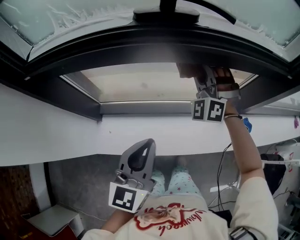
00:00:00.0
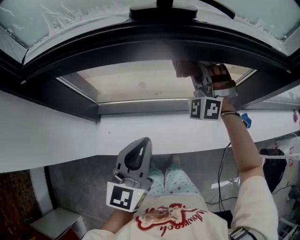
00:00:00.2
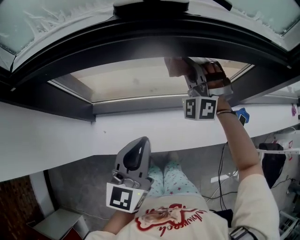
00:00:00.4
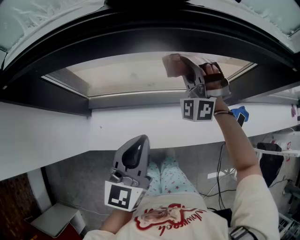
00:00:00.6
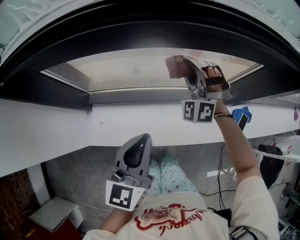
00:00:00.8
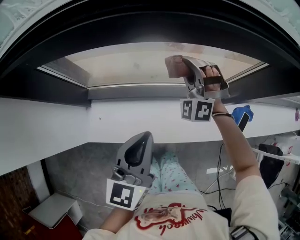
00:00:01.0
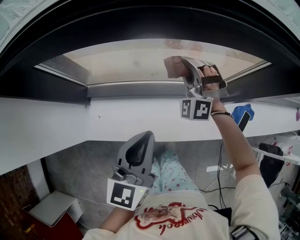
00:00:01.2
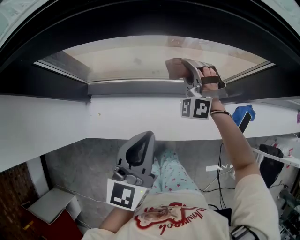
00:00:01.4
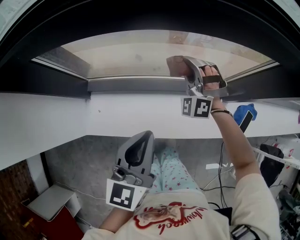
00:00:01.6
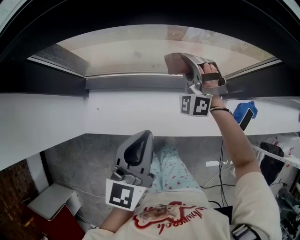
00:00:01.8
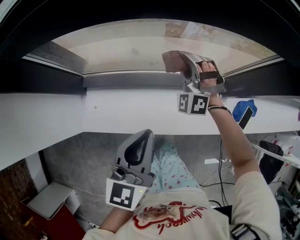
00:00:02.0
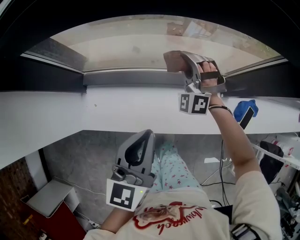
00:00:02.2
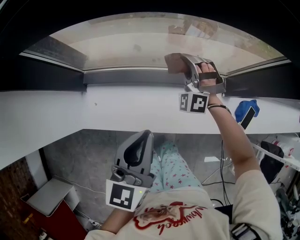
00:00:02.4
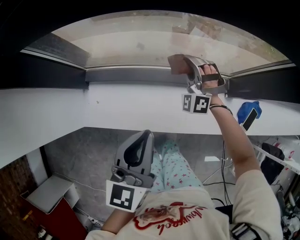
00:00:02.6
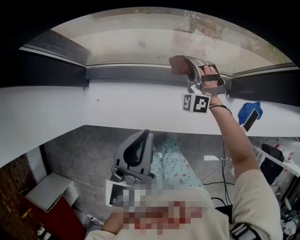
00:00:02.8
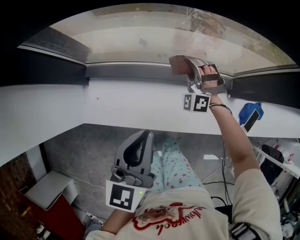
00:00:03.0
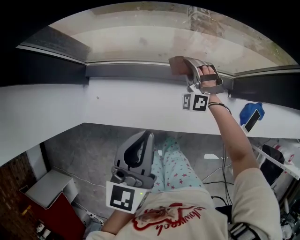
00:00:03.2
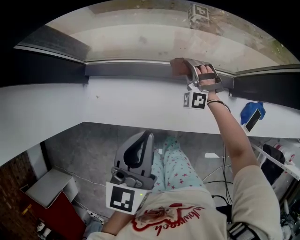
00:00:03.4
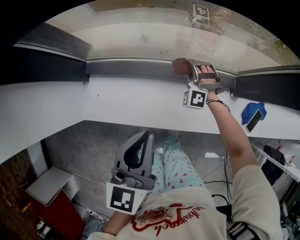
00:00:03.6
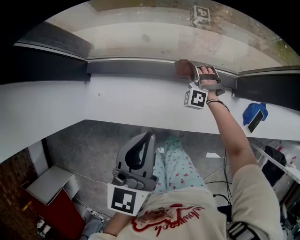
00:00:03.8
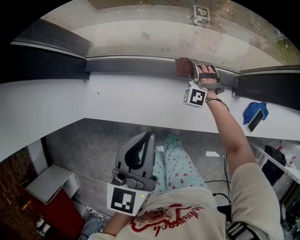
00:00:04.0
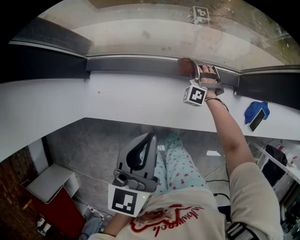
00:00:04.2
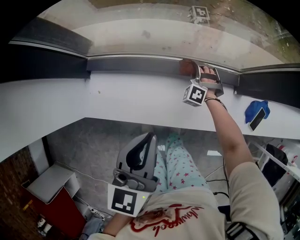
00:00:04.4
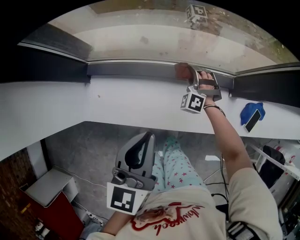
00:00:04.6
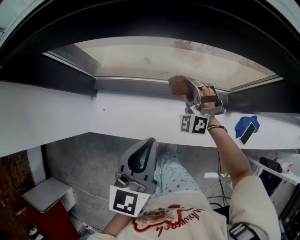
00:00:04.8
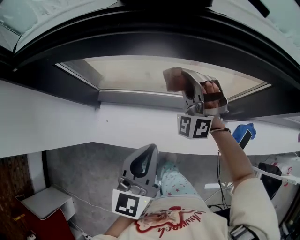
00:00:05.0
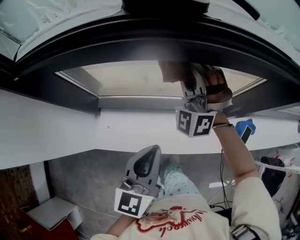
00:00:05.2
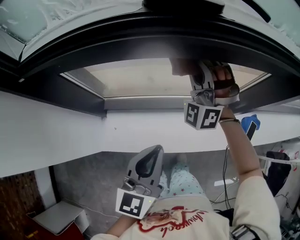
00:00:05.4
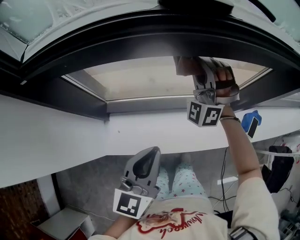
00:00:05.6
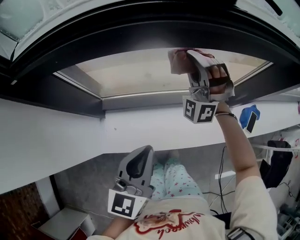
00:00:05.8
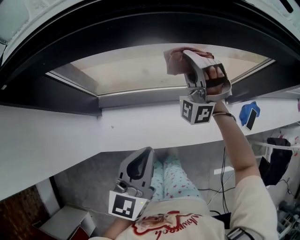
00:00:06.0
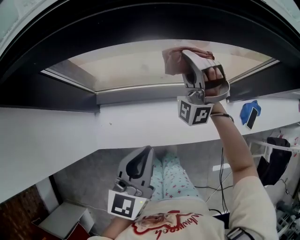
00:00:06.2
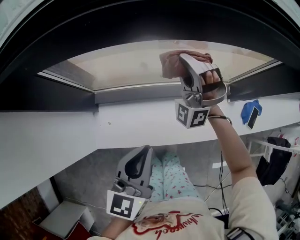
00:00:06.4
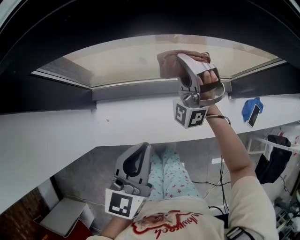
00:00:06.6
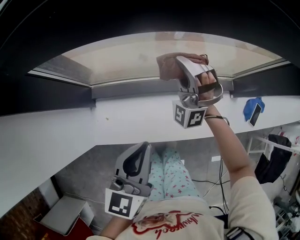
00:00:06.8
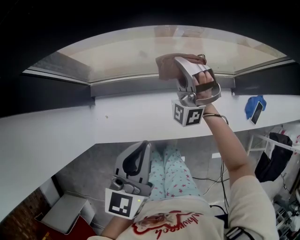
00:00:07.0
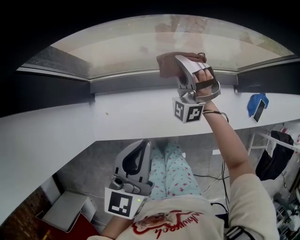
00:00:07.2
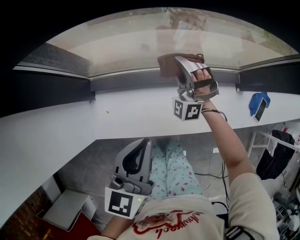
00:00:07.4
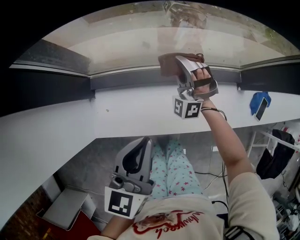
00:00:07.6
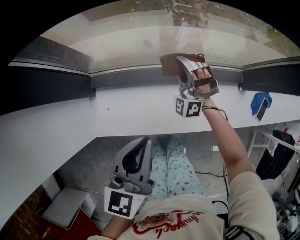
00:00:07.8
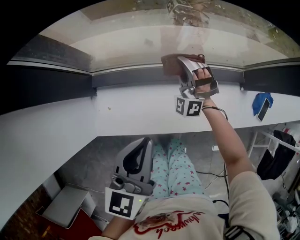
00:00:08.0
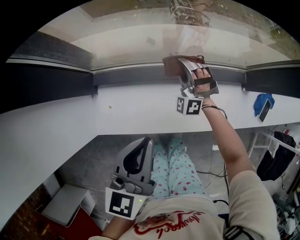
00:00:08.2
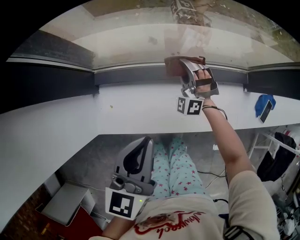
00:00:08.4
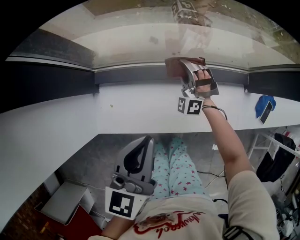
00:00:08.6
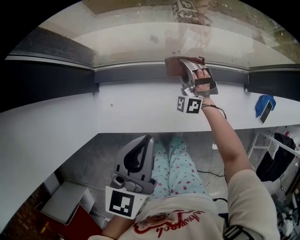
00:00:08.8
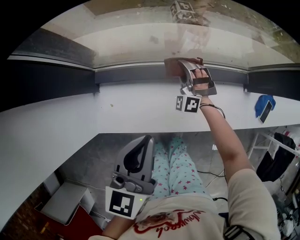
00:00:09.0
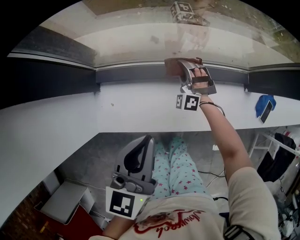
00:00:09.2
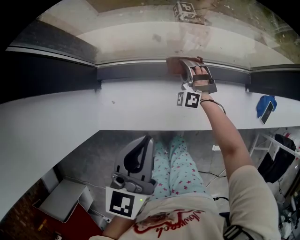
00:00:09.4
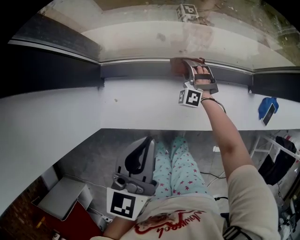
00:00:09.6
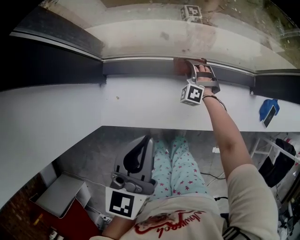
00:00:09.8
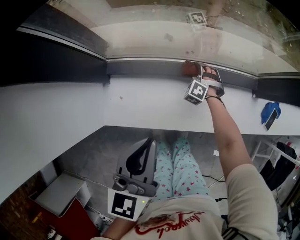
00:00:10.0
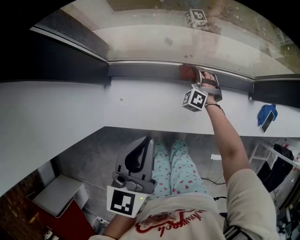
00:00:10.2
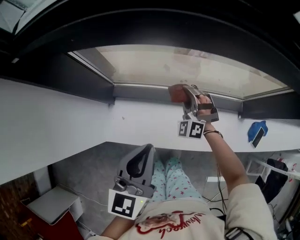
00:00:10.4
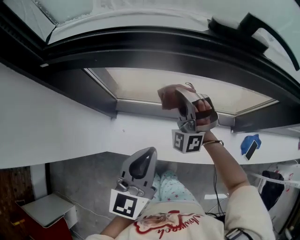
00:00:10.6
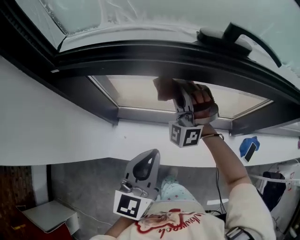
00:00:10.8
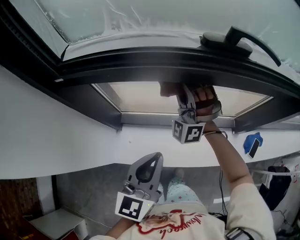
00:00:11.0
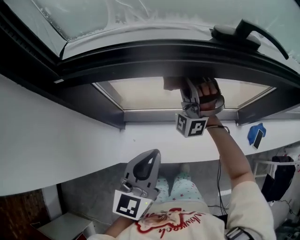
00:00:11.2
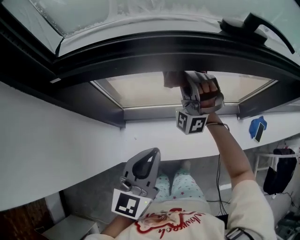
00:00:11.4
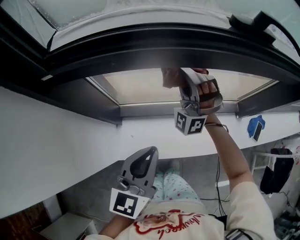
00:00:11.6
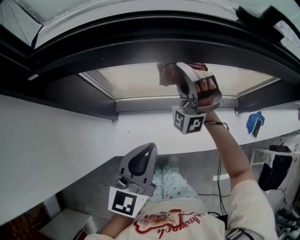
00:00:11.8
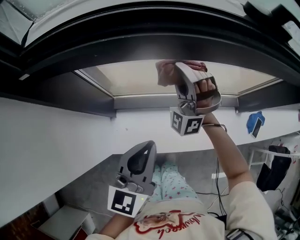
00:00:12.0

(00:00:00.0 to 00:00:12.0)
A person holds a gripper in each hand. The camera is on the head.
00:00:00.0 - 00:00:01.6: The left gripper goes roughly 10 cm downward. The right gripper shifts approximately 20 cm downward.
00:00:01.6 - 00:00:03.0: The right gripper heads downward, covering roughly 10 cm.
00:00:03.0 - 00:00:04.4: The right gripper moves downward, about 15 cm, and changes its angle by approximately 20 degrees.
00:00:04.4 - 00:00:06.0: The left gripper heads to the left and upward, covering roughly 10 cm, while the right gripper heads upward, covering some 40 cm, and angles its fingers upward, by some 40 degrees.
00:00:06.0 - 00:00:07.6: The right gripper shifts approximately 20 cm downward, while the left gripper moves downward, roughly 5 cm.
00:00:07.6 - 00:00:09.0: The right gripper moves downward, some 10 cm.
00:00:09.0 - 00:00:10.4: The left gripper moves upward, about 5 cm. Meanwhile the right gripper goes some 10 cm upward.
00:00:10.4 - 00:00:12.0: The right gripper is displaced upward by approximately 20 cm, and turns by about 30 degrees. Meanwhile the left gripper goes upward and returns, about 10 cm each way.

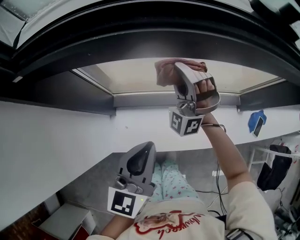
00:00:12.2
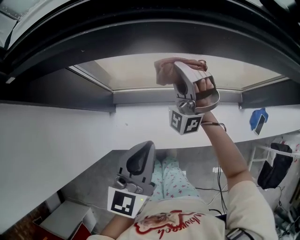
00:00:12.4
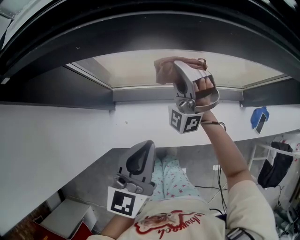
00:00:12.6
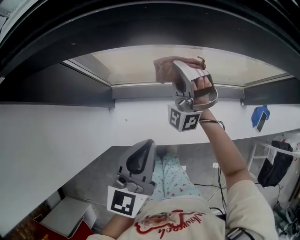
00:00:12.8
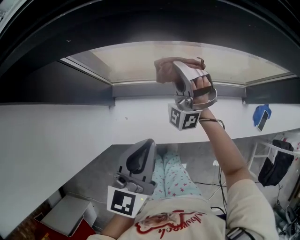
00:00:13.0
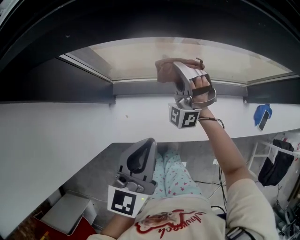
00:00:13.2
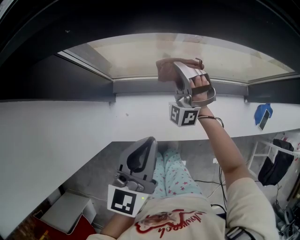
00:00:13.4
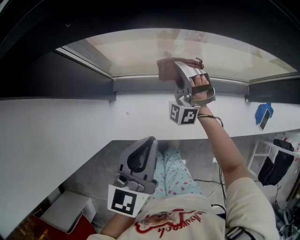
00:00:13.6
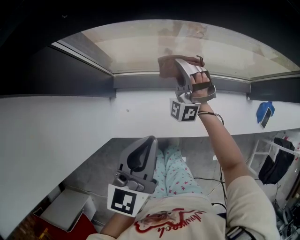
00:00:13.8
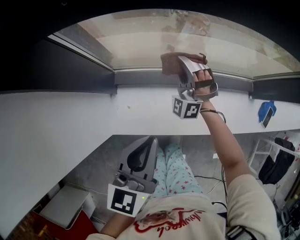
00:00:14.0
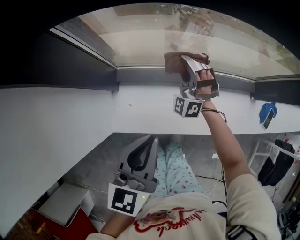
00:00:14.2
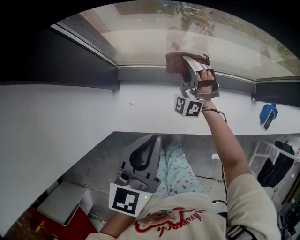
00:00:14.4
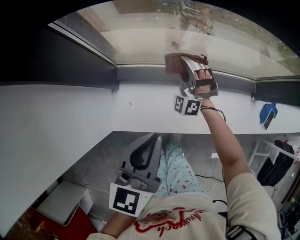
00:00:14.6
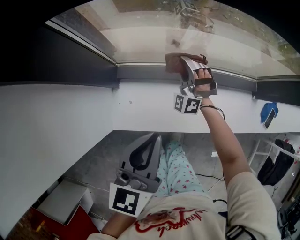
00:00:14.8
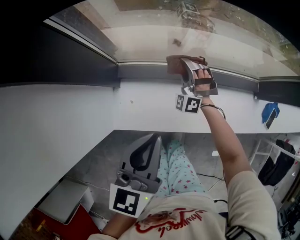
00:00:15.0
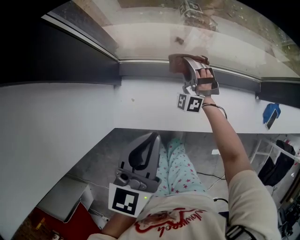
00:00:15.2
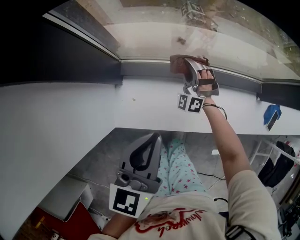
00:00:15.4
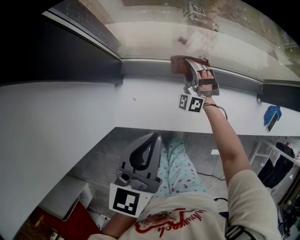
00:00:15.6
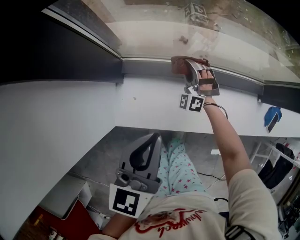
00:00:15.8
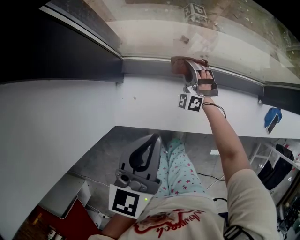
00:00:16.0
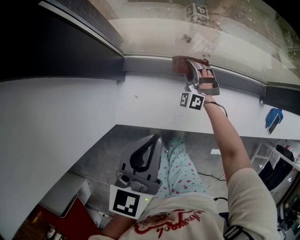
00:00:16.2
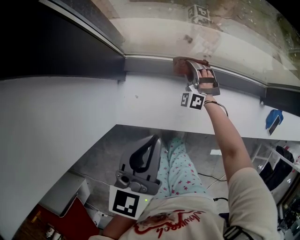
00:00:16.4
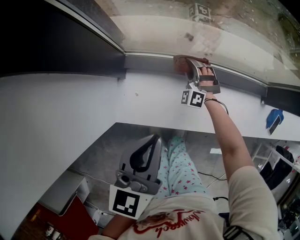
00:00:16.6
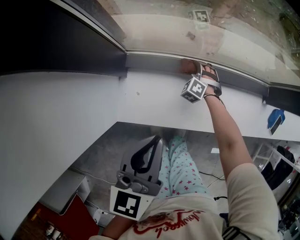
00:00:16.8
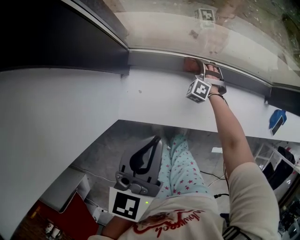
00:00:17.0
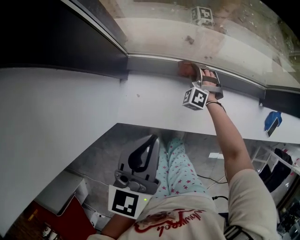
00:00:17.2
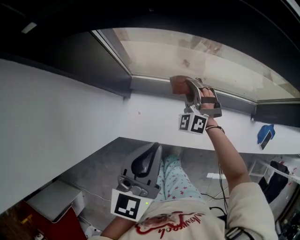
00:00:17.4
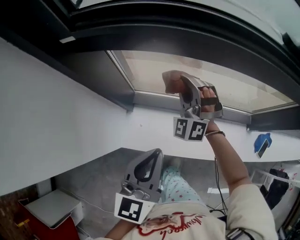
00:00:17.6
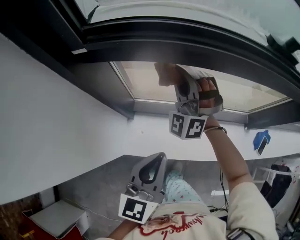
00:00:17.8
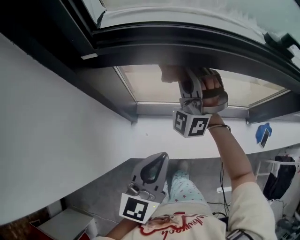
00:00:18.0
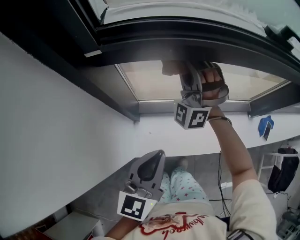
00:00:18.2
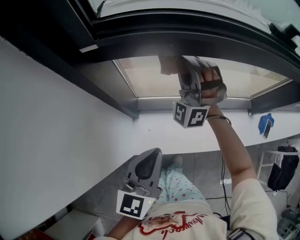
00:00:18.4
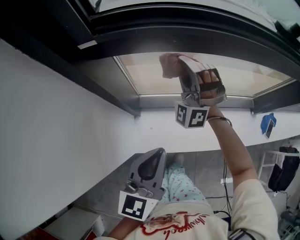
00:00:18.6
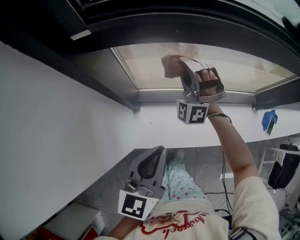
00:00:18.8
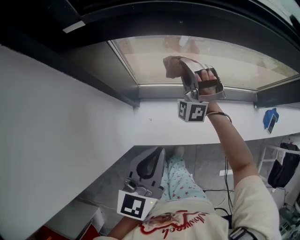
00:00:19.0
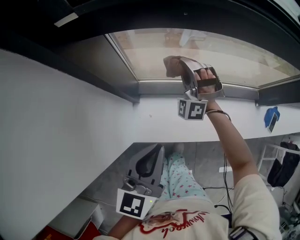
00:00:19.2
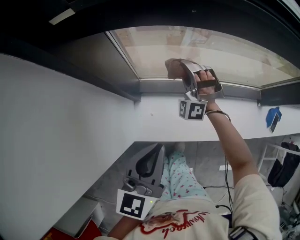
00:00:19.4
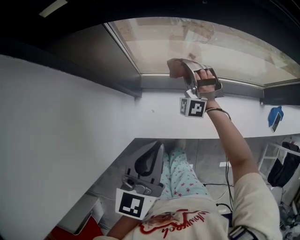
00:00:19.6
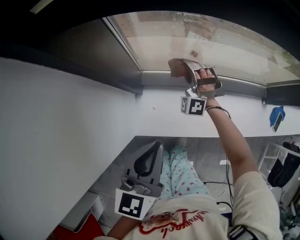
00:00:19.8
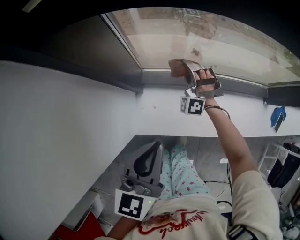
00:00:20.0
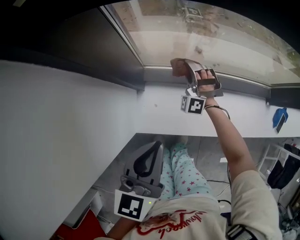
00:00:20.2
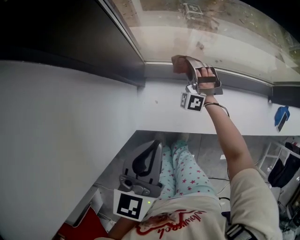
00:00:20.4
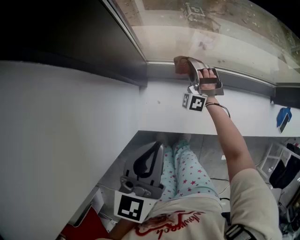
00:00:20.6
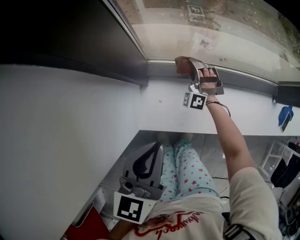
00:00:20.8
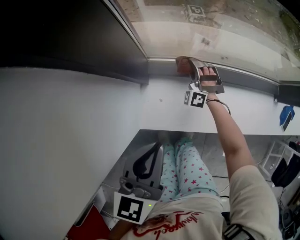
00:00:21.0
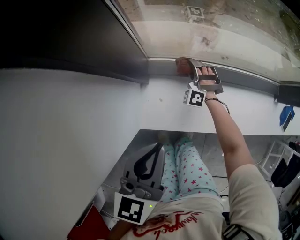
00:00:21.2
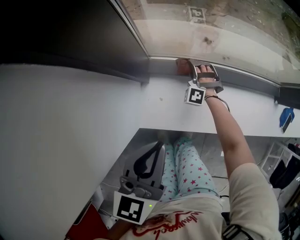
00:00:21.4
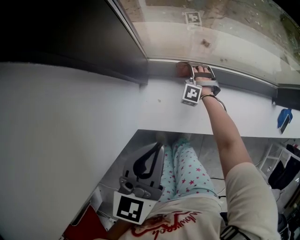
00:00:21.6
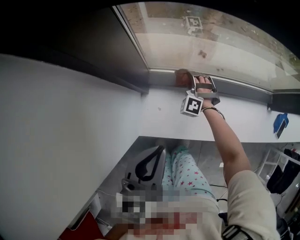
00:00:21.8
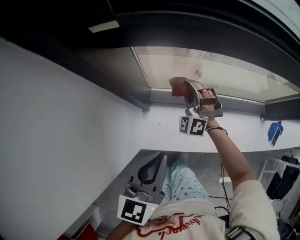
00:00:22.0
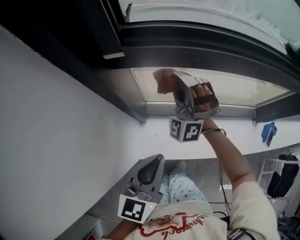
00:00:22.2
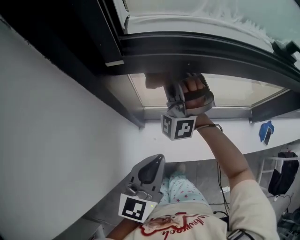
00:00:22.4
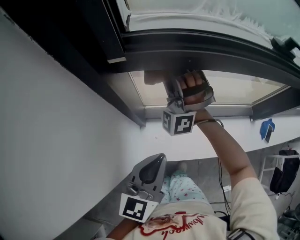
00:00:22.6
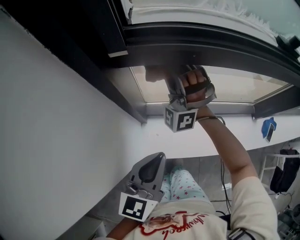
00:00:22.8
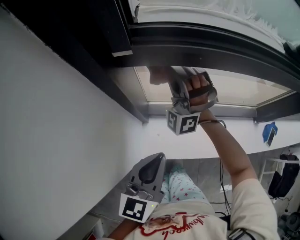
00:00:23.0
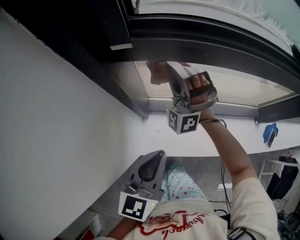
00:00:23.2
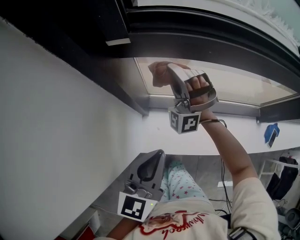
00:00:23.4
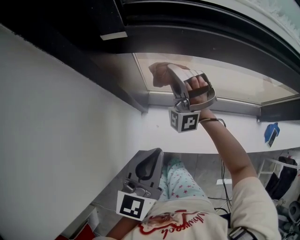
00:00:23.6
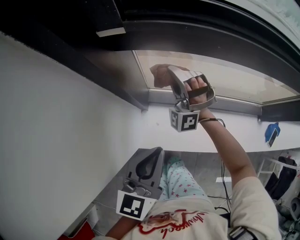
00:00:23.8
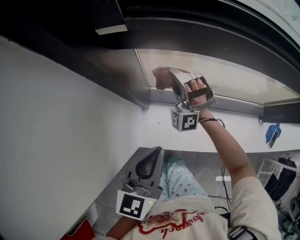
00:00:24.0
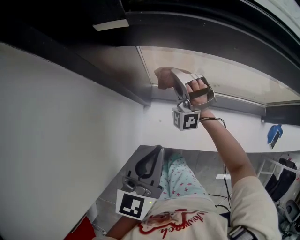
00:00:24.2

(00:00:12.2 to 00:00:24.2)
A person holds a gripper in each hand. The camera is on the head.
00:00:12.2 - 00:00:13.8: The left gripper travels downward by approximately 5 cm; the right gripper is displaced downward by approximately 15 cm.
00:00:13.8 - 00:00:15.2: The right gripper travels downward by roughly 10 cm.
00:00:15.2 - 00:00:16.6: The right gripper travels downward by some 10 cm.
00:00:16.6 - 00:00:18.2: The left gripper travels upward by some 10 cm, while the right gripper goes about 40 cm upward, and points its fingers approximately 40 degrees further upward.
00:00:18.2 - 00:00:19.8: The left gripper shifts some 10 cm downward; the right gripper is displaced downward by some 30 cm, and rotates some 30 degrees.
00:00:19.8 - 00:00:21.2: The right gripper moves downward, approximately 15 cm.
00:00:21.2 - 00:00:22.6: The left gripper travels upward by approximately 15 cm, while the right gripper is displaced upward by some 50 cm, and angles its fingers upward, by about 30 degrees.
00:00:22.6 - 00:00:24.2: The right gripper heads downward, covering some 20 cm; the left gripper shifts about 5 cm downward.
